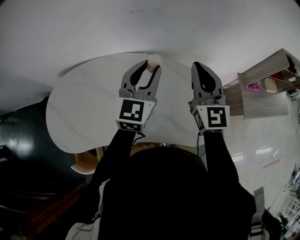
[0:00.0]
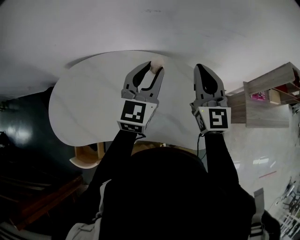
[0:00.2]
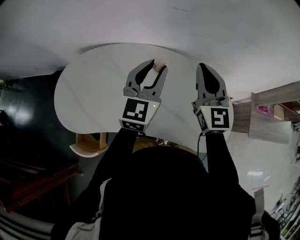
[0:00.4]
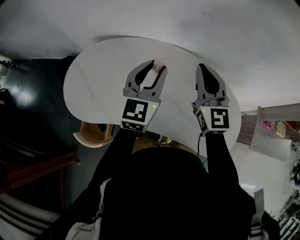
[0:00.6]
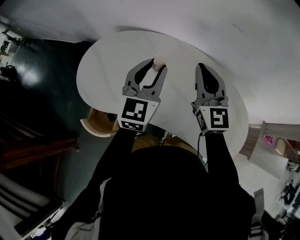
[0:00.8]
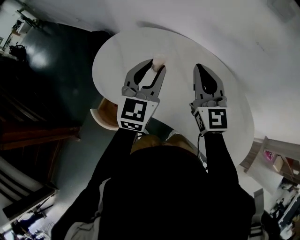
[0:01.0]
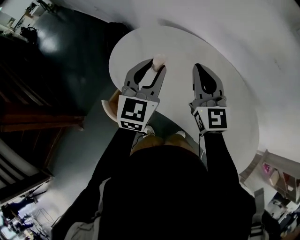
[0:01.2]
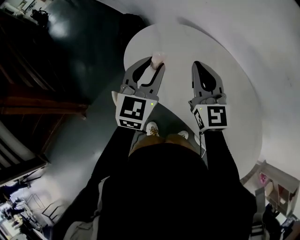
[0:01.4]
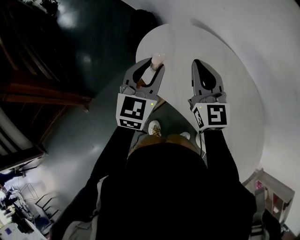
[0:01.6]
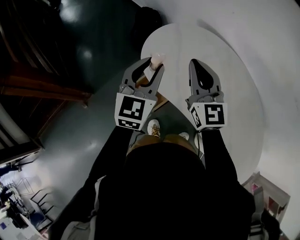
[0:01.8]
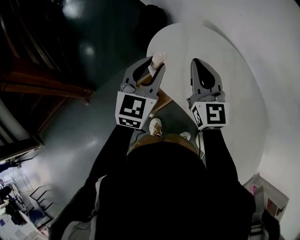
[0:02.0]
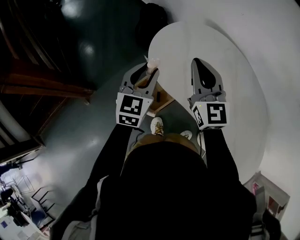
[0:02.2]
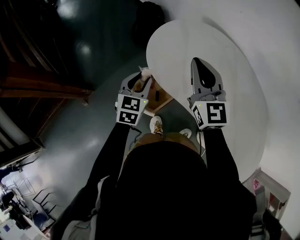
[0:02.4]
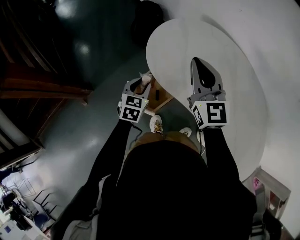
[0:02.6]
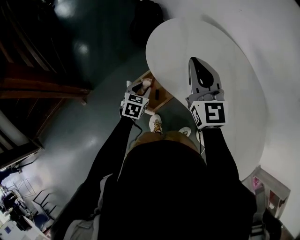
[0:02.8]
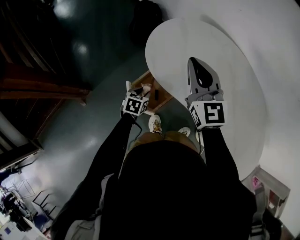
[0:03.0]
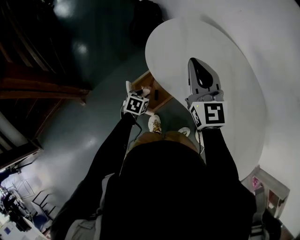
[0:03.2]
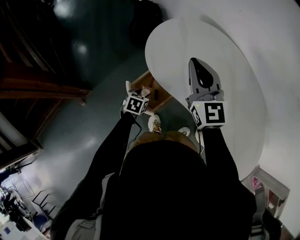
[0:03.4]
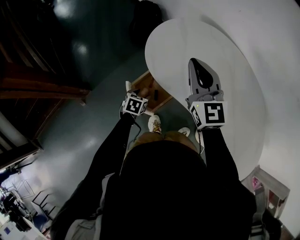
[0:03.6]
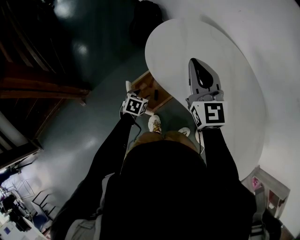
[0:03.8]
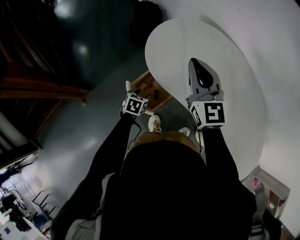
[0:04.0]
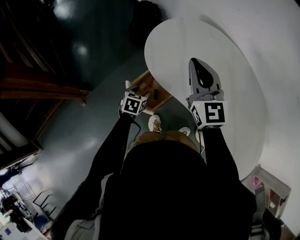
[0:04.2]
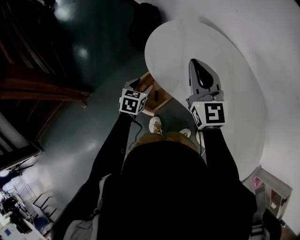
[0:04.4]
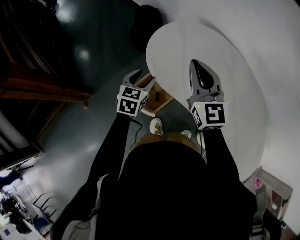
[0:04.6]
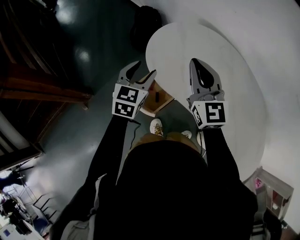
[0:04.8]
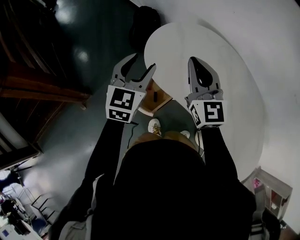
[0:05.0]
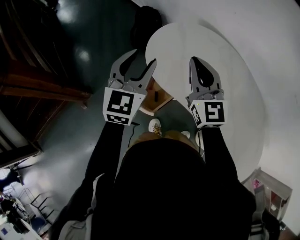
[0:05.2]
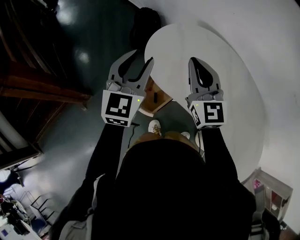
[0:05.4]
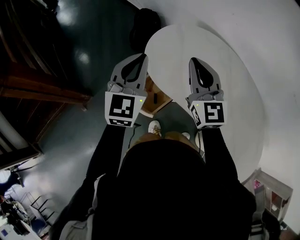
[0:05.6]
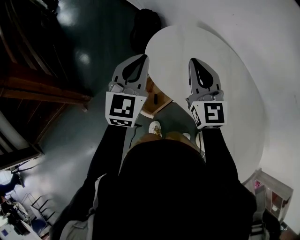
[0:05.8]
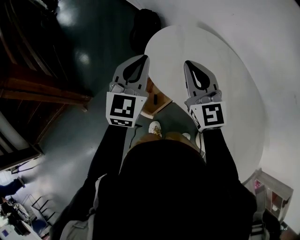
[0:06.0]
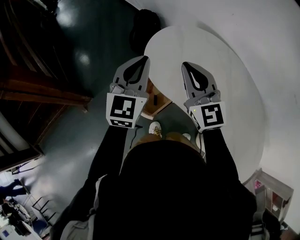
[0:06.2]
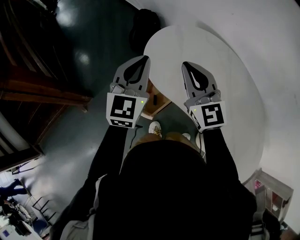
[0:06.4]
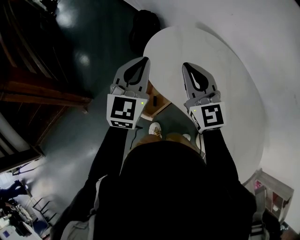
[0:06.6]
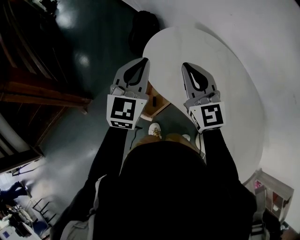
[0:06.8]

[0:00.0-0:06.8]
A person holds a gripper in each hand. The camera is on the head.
0:00.0 to 0:01.4: The pair of grippers is taken roughly 50 cm. The right gripper swivels roughly 50 degrees. The left gripper rotates some 50 degrees.
0:01.4 to 0:02.8: The right gripper travels to the left by approximately 15 cm; the left gripper goes approximately 35 cm downward and to the left, and angles its fingers downward, by about 40 degrees.
0:02.8 to 0:04.0: The left gripper goes approximately 5 cm downward.
0:04.0 to 0:05.4: The left gripper is displaced upward by some 40 cm, and tilts its fingers roughly 50 degrees upward.
0:05.4 to 0:06.8: The left gripper closes up.

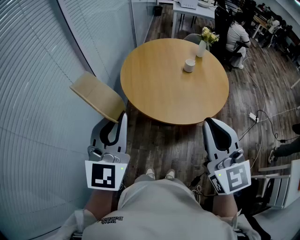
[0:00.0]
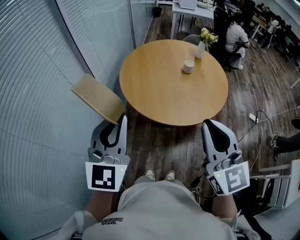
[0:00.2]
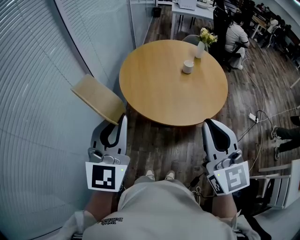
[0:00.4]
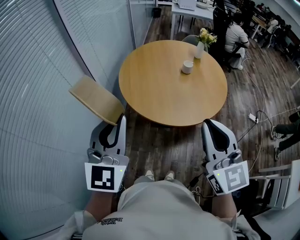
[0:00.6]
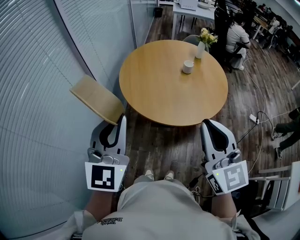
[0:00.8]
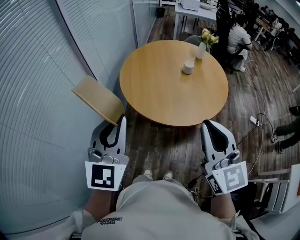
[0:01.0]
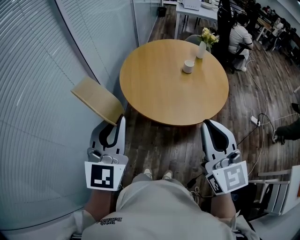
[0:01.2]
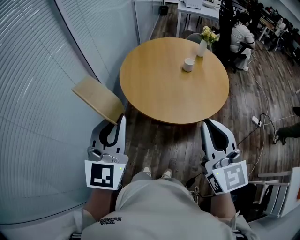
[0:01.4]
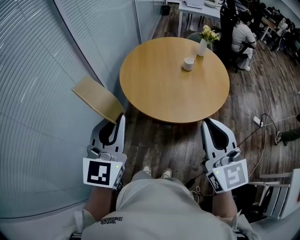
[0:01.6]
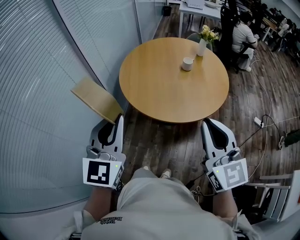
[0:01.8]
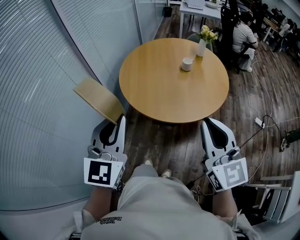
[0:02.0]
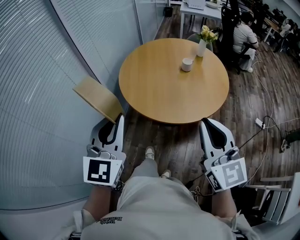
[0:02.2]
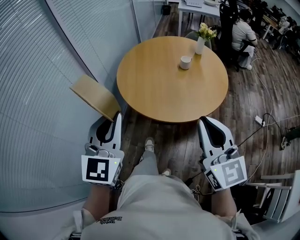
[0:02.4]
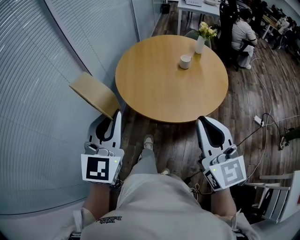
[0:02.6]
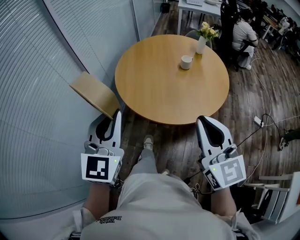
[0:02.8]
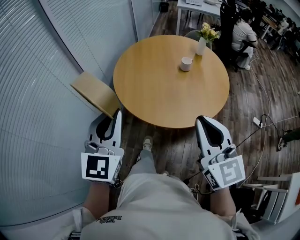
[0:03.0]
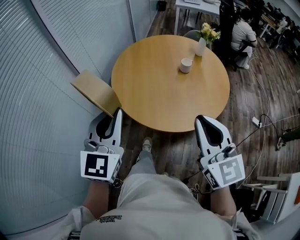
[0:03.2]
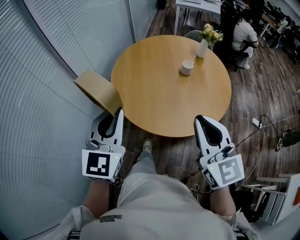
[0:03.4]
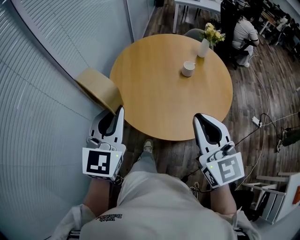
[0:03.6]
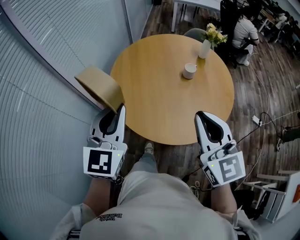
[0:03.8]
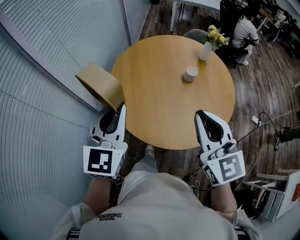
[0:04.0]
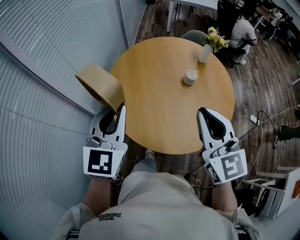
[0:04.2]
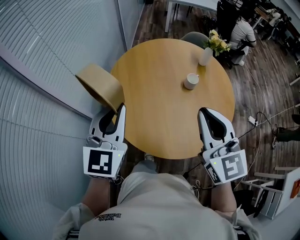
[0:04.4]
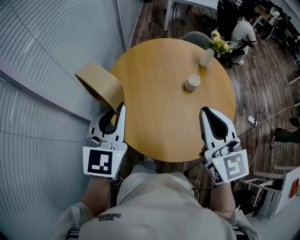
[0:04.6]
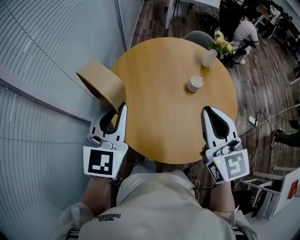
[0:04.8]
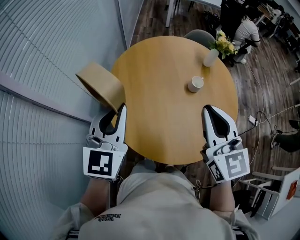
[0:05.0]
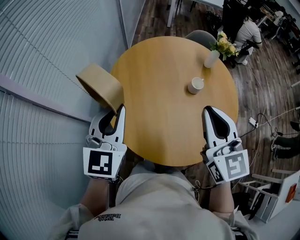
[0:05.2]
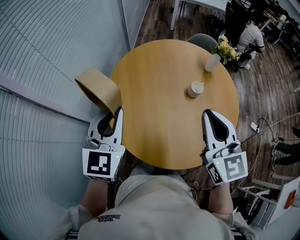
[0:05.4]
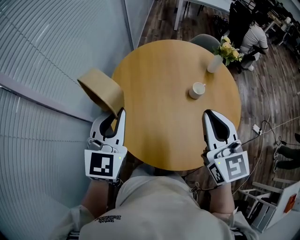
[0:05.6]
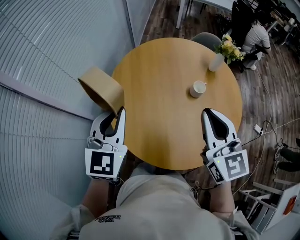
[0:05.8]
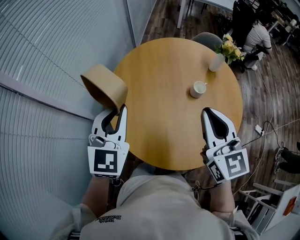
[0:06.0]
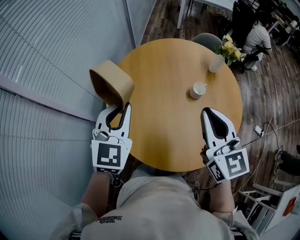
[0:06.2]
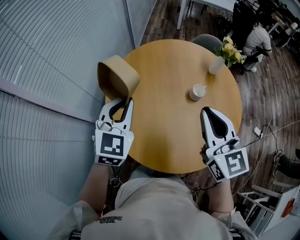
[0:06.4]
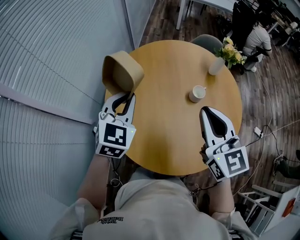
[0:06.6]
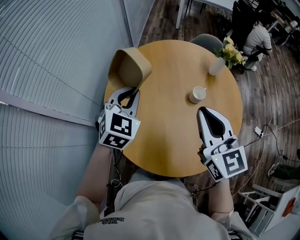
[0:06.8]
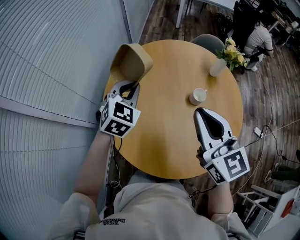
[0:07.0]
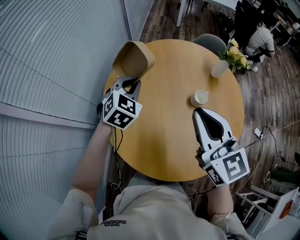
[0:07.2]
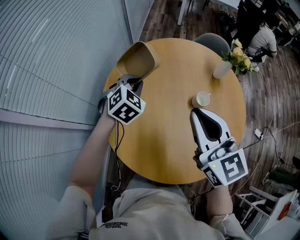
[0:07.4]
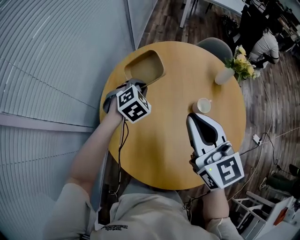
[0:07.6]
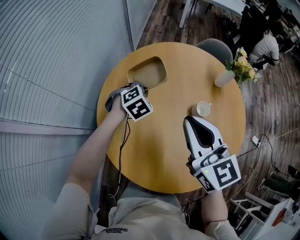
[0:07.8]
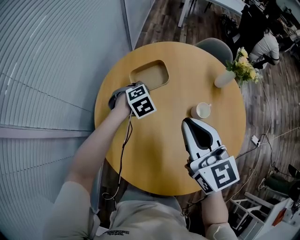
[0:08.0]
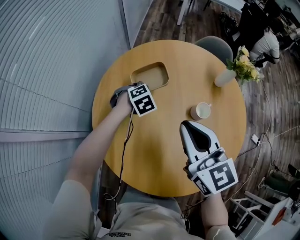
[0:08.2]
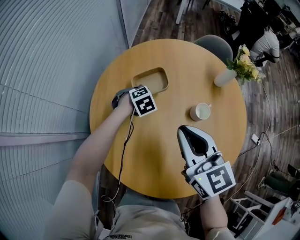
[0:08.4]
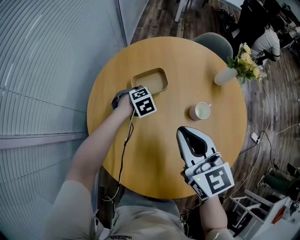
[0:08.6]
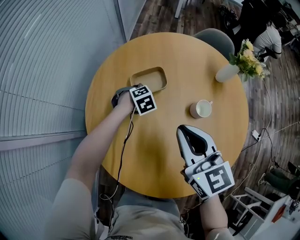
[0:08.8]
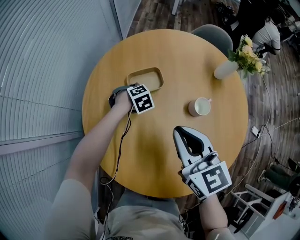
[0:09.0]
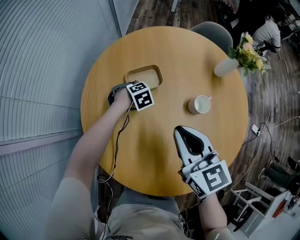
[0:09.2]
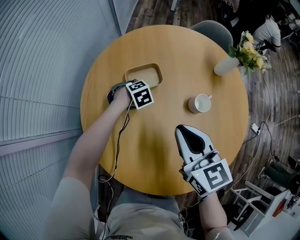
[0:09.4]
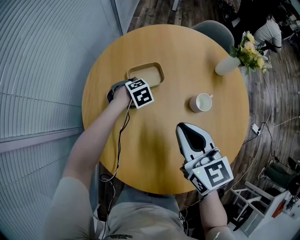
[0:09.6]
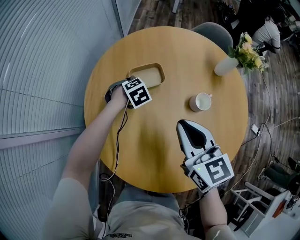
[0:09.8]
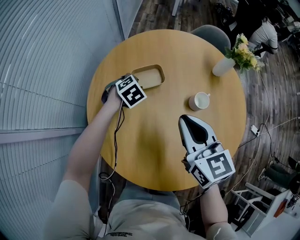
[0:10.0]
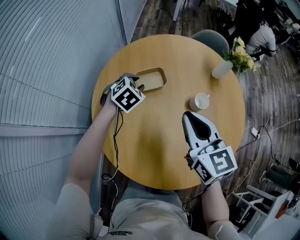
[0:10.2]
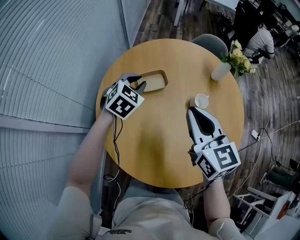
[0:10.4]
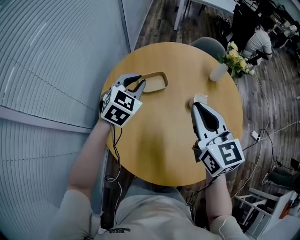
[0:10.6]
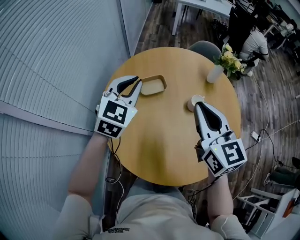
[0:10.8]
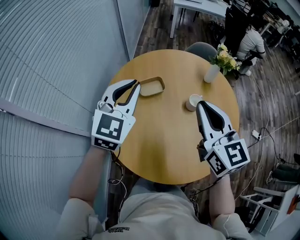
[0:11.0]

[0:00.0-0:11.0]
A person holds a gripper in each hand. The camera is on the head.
0:00.0 to 0:01.6: The grippers both shift to the right by about 5 cm.
0:01.6 to 0:03.2: Both grippers move forward, some 10 cm.
0:03.2 to 0:04.8: Both grippers move forward, some 30 cm.
0:04.8 to 0:06.2: The right gripper goes about 5 cm to the right, while the left gripper changes place by some 5 cm.
0:06.2 to 0:07.8: The left gripper heads downward and forward, covering approximately 35 cm, and tilts its fingers roughly 40 degrees downward. Meanwhile the right gripper travels forward, to the left and downward by some 15 cm.
0:07.8 to 0:09.4: Both grippers travel together downward, some 15 cm. The left gripper rotates approximately 20 degrees.
0:09.4 to 0:11.0: The right gripper is displaced upward by some 20 cm, and swivels approximately 20 degrees, while the left gripper goes some 50 cm upward, angles its fingers upward, by roughly 70 degrees, and opens and closes again.

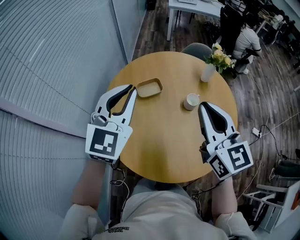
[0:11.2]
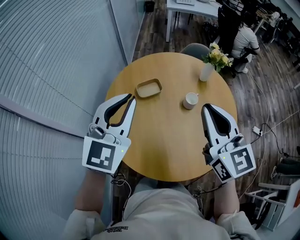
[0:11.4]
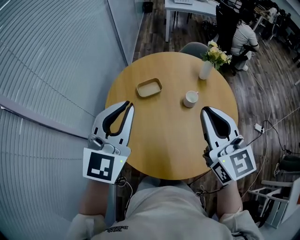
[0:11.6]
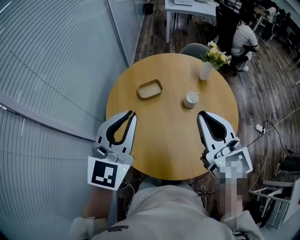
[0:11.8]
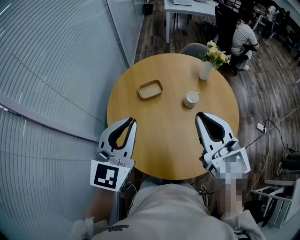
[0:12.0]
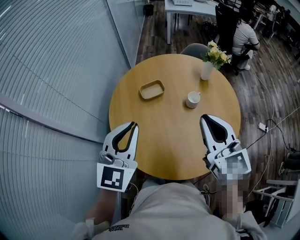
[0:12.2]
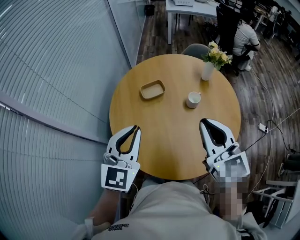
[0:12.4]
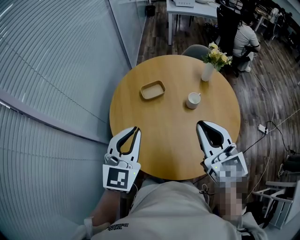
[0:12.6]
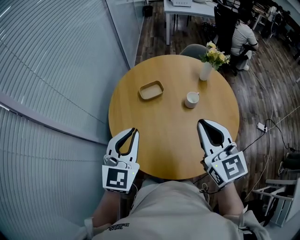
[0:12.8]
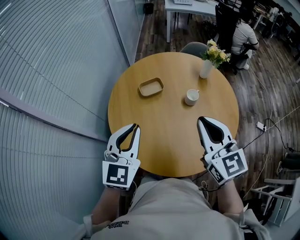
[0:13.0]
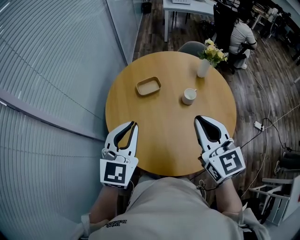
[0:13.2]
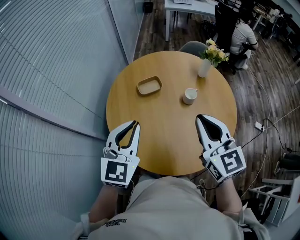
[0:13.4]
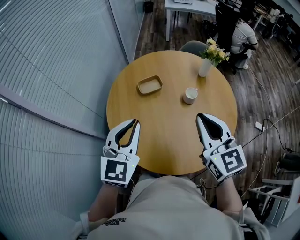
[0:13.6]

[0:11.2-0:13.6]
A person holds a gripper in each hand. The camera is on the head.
0:11.2 to 0:12.4: The right gripper travels backward by roughly 5 cm; the left gripper shifts about 10 cm backward.
0:12.4 to 0:13.6: The grippers stay close to where they were, moving slightly.

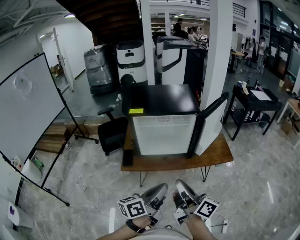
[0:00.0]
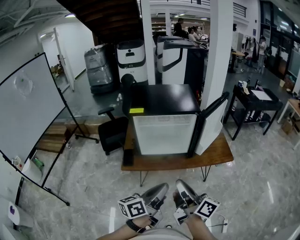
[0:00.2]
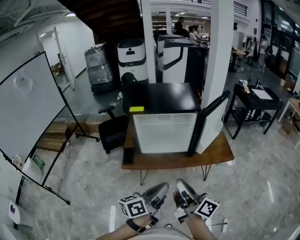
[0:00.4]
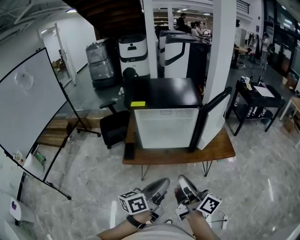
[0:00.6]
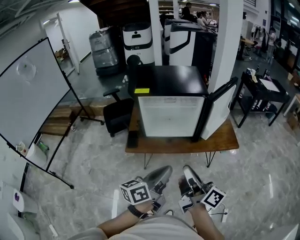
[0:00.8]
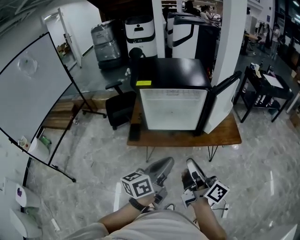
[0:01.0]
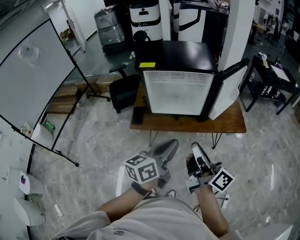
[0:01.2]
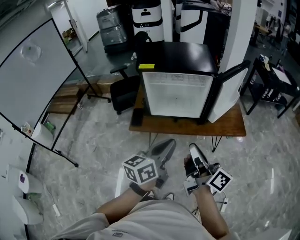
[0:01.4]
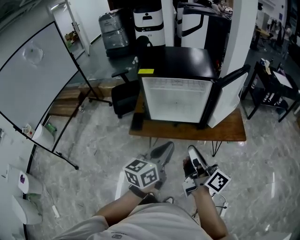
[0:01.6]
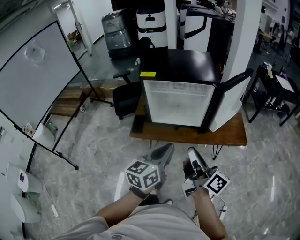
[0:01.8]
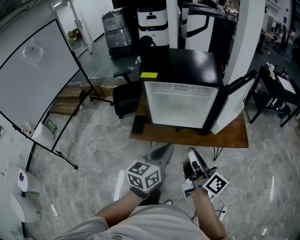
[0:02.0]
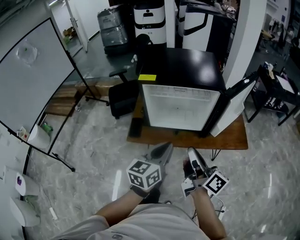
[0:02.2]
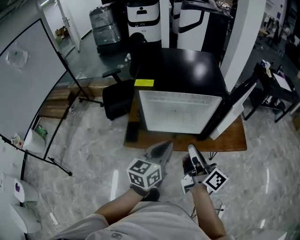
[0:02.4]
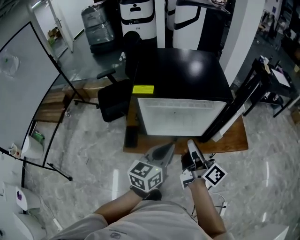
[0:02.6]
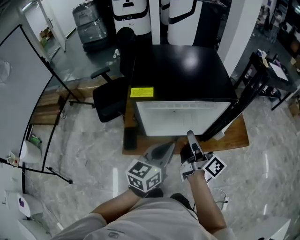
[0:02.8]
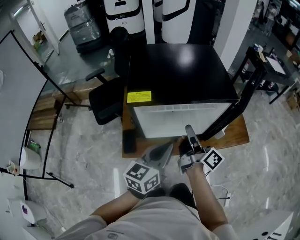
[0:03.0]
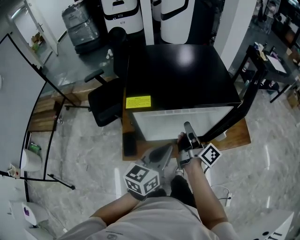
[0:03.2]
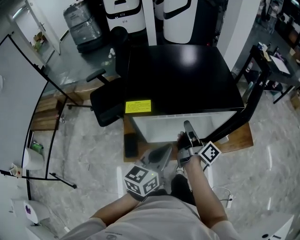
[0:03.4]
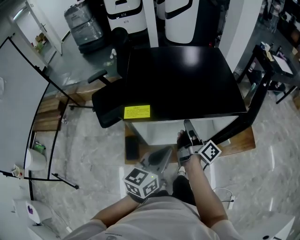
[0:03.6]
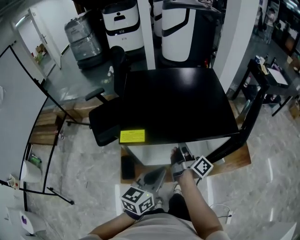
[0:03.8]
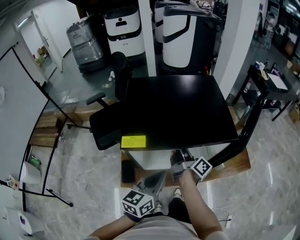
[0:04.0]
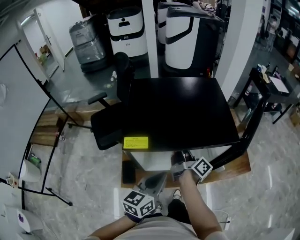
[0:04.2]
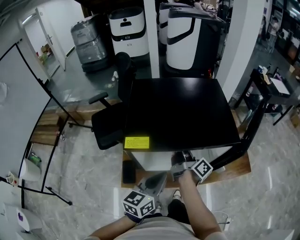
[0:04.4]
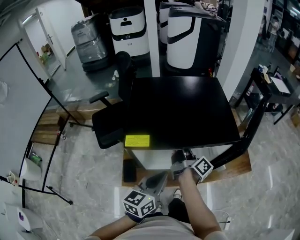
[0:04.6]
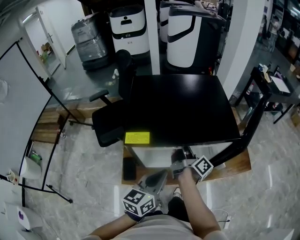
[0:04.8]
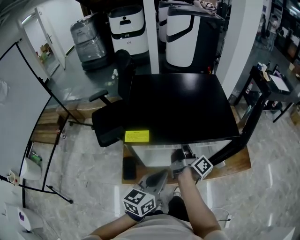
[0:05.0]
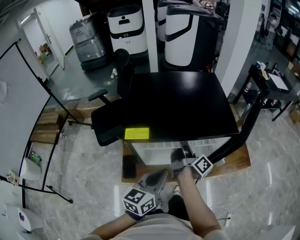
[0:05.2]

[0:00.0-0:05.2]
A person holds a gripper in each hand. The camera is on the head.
0:00.0 to 0:01.8: The left gripper changes place by approximately 5 cm, and turns by about 30 degrees.
0:01.8 to 0:03.4: The left gripper ends up approximately 25 cm from where it was.
